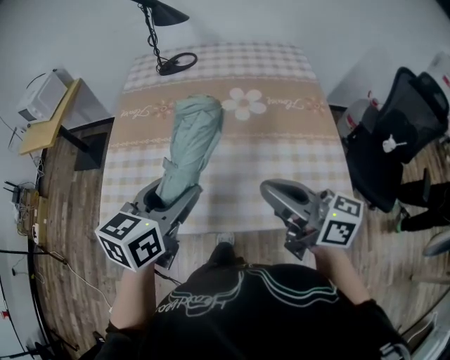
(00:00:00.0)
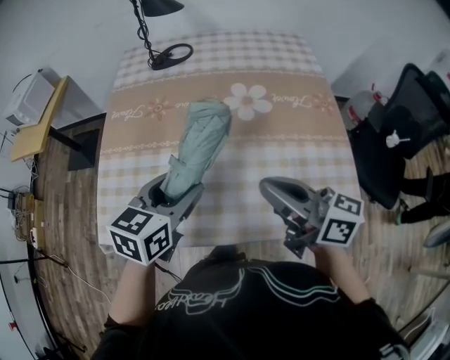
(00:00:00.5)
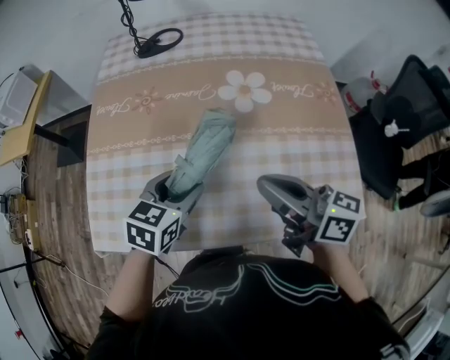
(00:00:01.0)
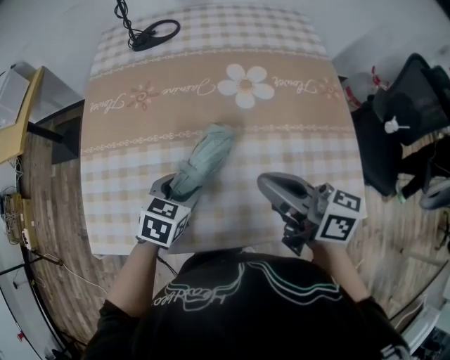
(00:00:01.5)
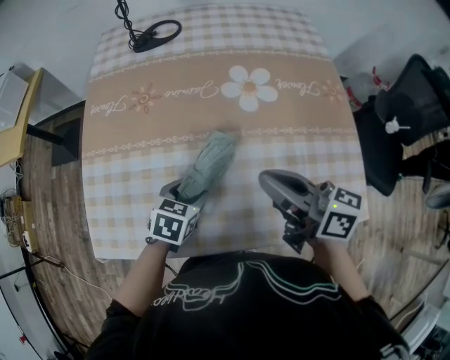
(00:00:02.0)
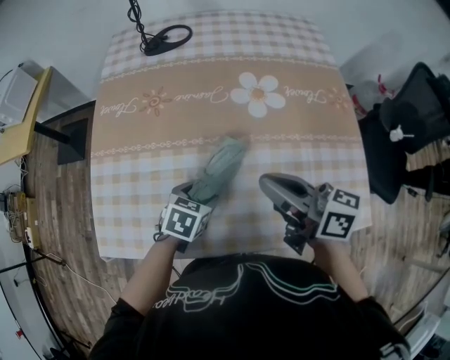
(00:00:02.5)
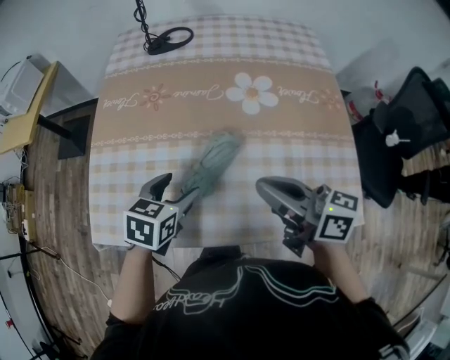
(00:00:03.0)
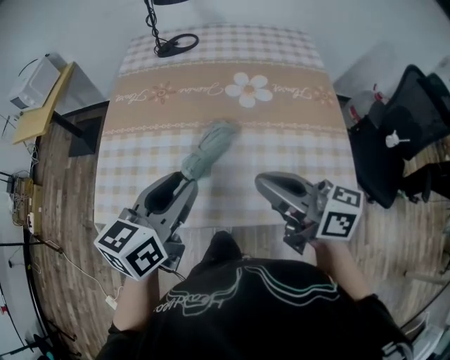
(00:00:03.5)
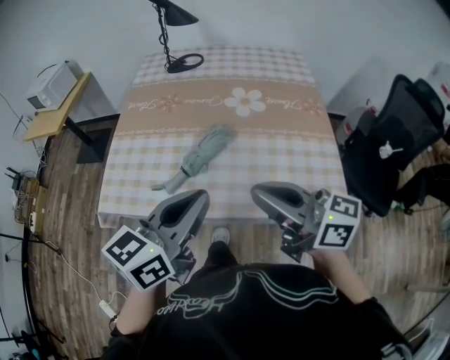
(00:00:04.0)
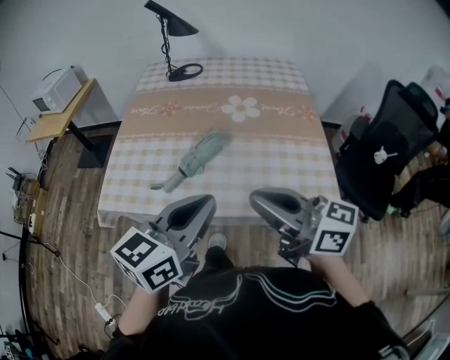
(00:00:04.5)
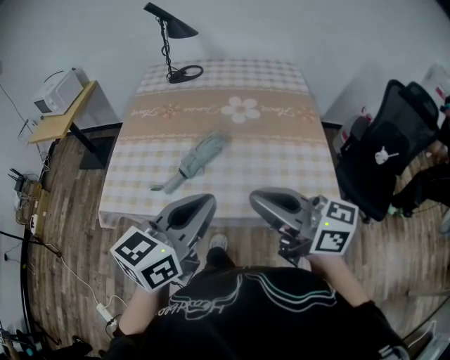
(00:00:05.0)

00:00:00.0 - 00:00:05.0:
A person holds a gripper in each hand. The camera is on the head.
00:00:00.0 - 00:00:02.5: The left gripper shifts roughly 25 cm downward, and tips its fingers downward by some 40 degrees. The right gripper heads forward and downward, covering about 15 cm.
00:00:02.5 - 00:00:05.0: The left gripper goes approximately 40 cm upward and backward, angles its fingers upward, by some 50 degrees, and closes up. Meanwhile the right gripper heads backward and upward, covering approximately 30 cm, and turns by about 20 degrees.

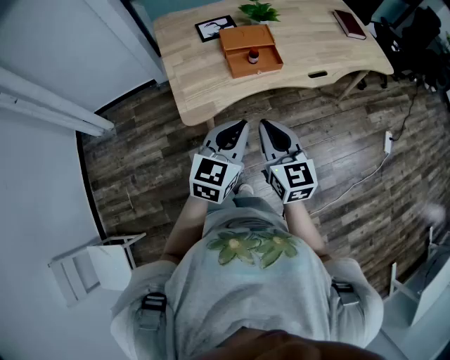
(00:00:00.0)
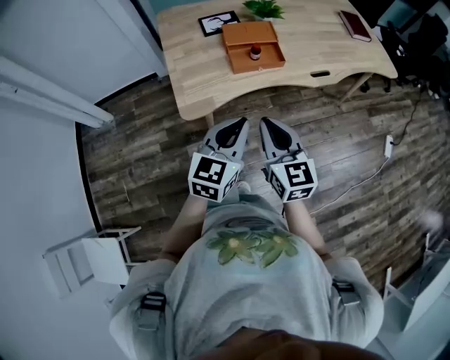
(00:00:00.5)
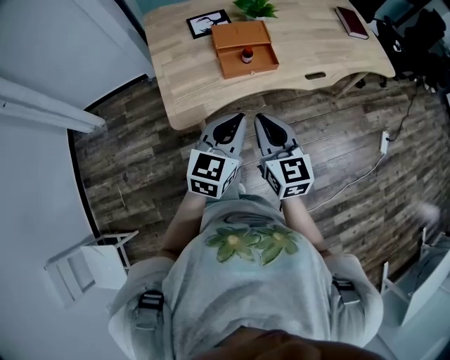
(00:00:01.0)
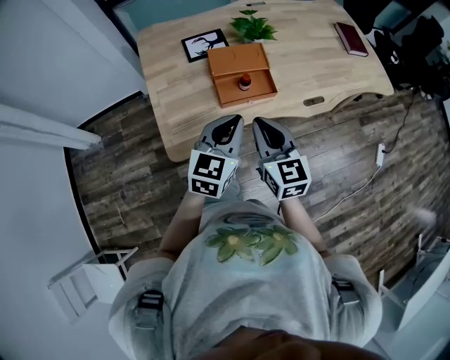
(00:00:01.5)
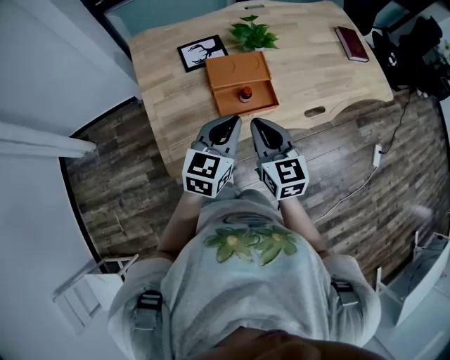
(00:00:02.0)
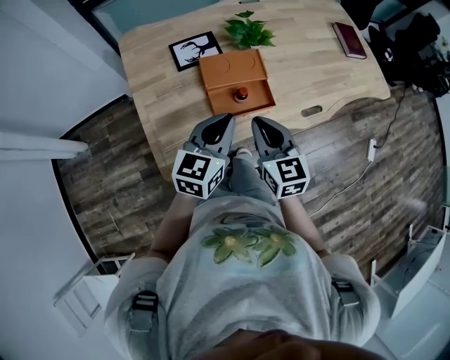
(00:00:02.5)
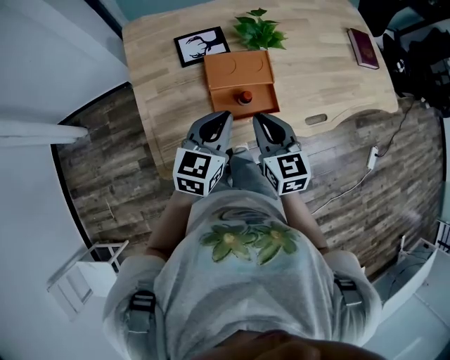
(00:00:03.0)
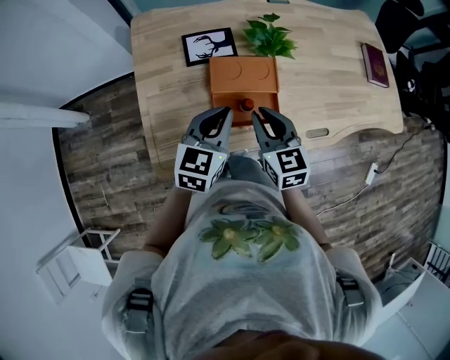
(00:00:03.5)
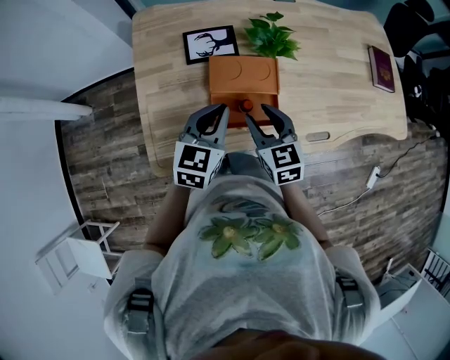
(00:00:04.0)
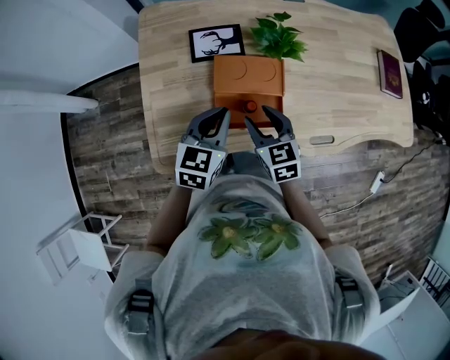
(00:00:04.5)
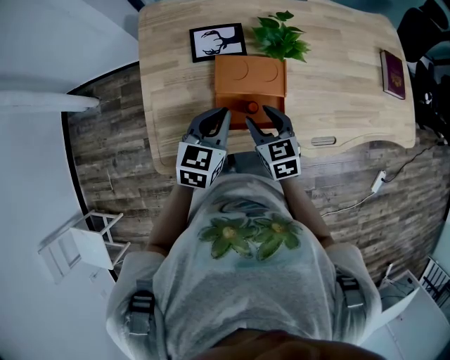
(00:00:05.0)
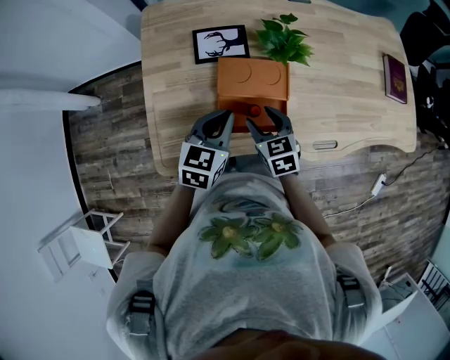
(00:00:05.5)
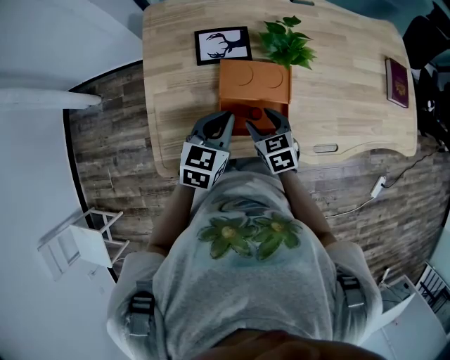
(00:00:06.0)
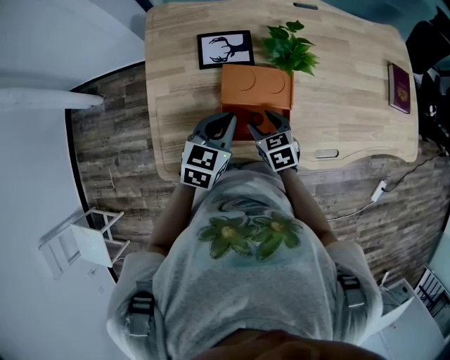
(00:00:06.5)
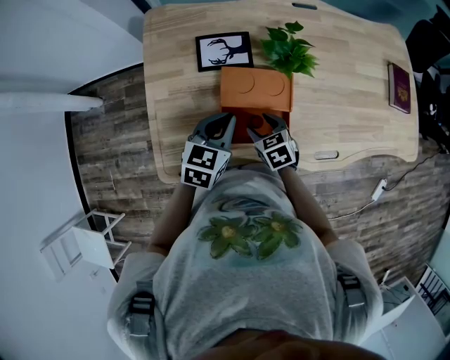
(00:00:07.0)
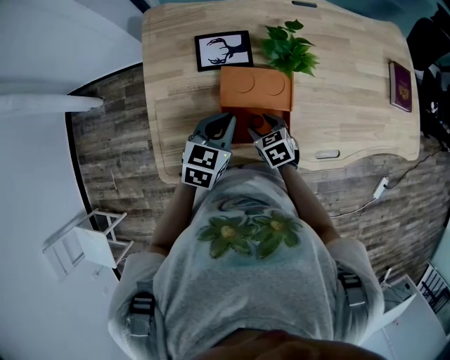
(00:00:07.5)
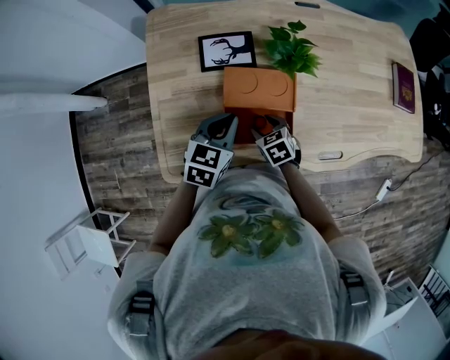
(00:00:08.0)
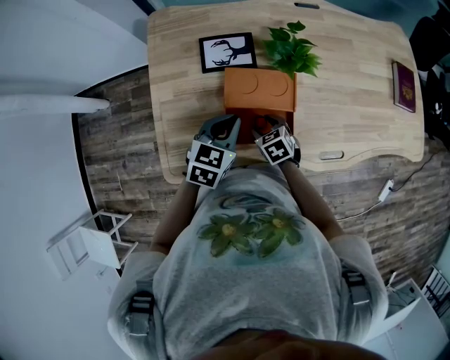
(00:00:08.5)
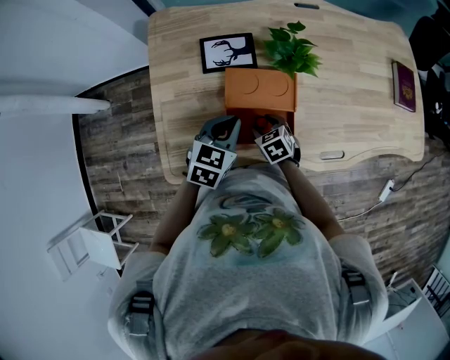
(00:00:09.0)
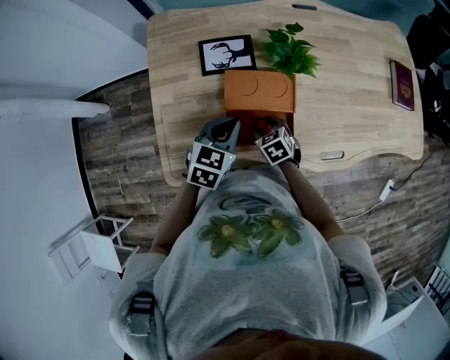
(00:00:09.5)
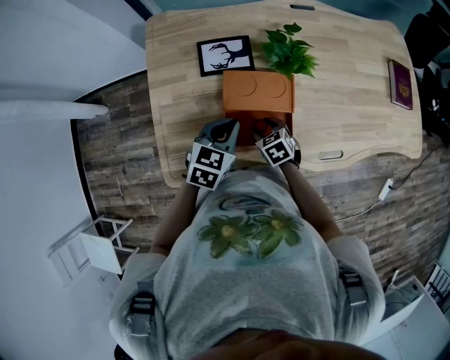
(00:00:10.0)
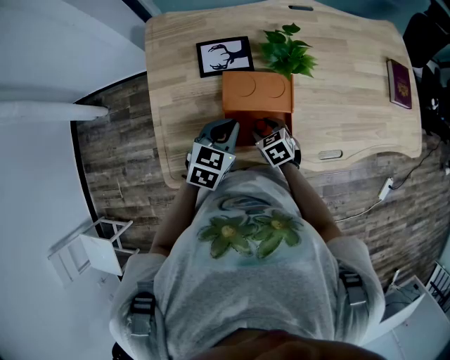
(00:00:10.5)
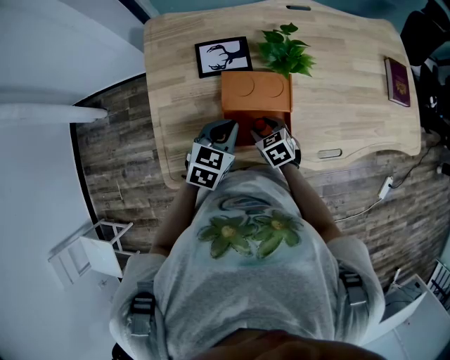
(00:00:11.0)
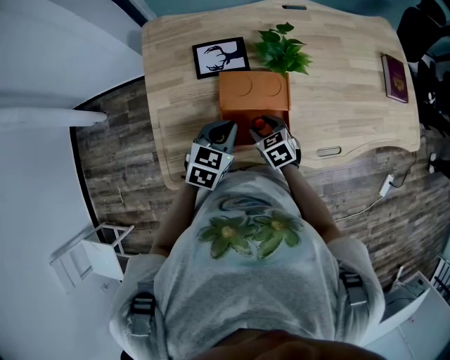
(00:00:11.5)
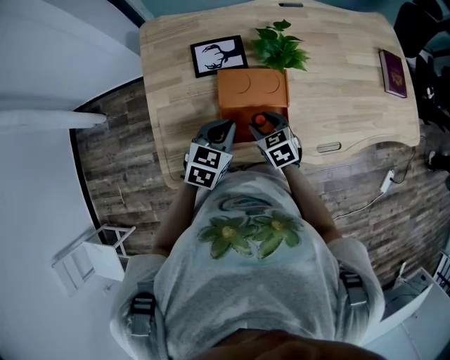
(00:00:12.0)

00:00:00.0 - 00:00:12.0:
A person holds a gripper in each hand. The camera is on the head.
00:00:00.0 - 00:00:02.0: The two grippers go roughly 25 cm forward.
00:00:02.0 - 00:00:04.0: The right gripper heads forward and downward, covering about 15 cm, and opens its fingers. Meanwhile the left gripper heads forward, covering some 10 cm.
00:00:04.0 - 00:00:06.0: The right gripper travels downward by roughly 10 cm.
00:00:06.0 - 00:00:08.0: The right gripper goes approximately 5 cm downward.
00:00:08.0 - 00:00:10.0: Both grippers stay about where they are.
00:00:10.0 - 00:00:12.0: The right gripper travels upward by roughly 5 cm.

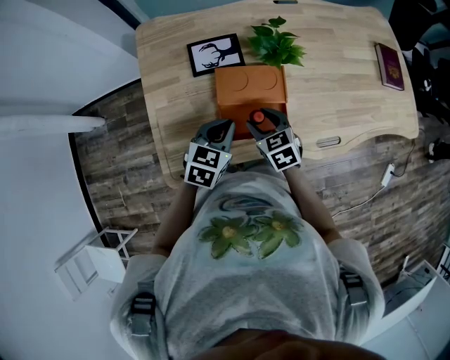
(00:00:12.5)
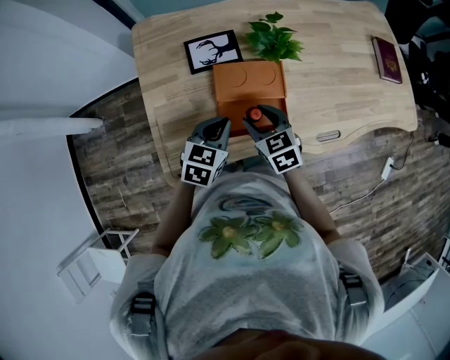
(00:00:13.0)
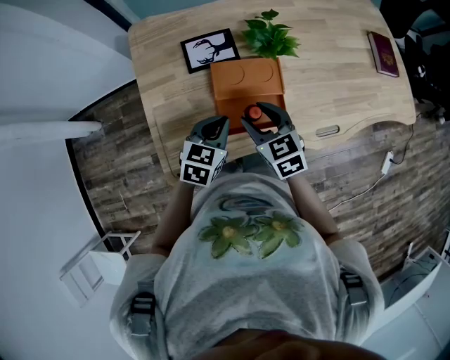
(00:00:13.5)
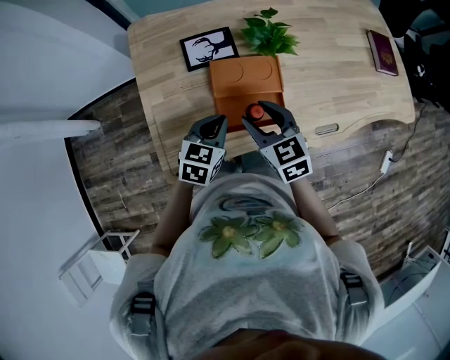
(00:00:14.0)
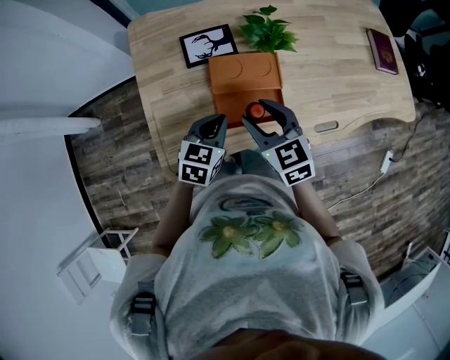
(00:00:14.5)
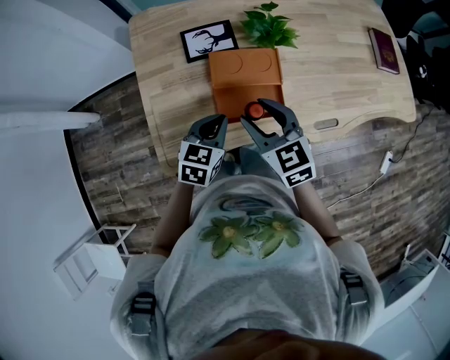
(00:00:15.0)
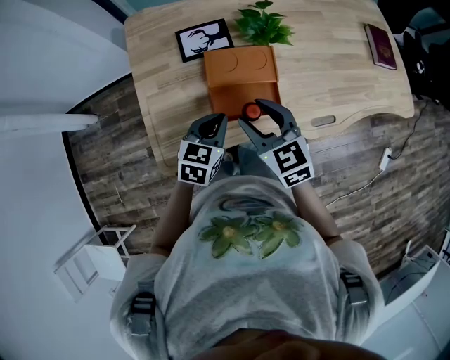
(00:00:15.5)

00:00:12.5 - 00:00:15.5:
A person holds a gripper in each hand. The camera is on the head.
00:00:12.5 - 00:00:14.0: The right gripper is displaced upward by roughly 10 cm.
00:00:14.0 - 00:00:15.5: The grippers move only a little.

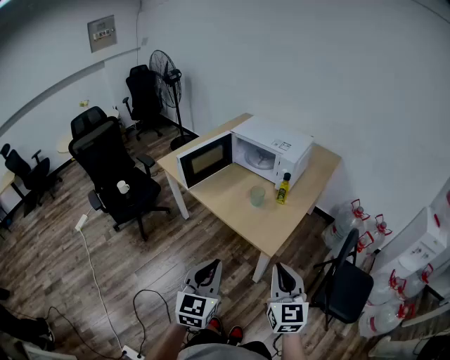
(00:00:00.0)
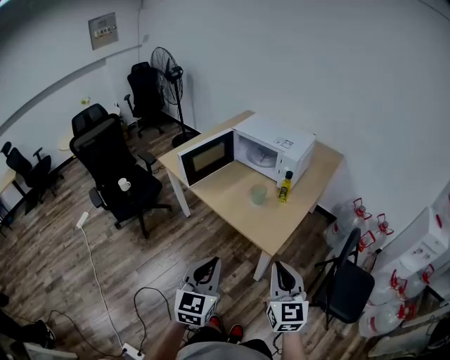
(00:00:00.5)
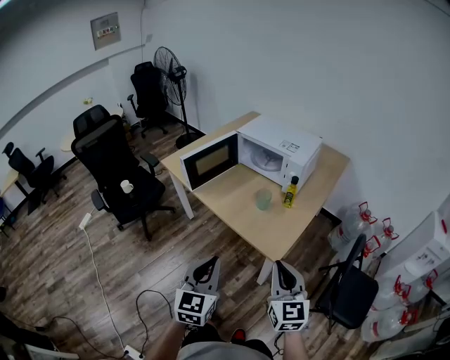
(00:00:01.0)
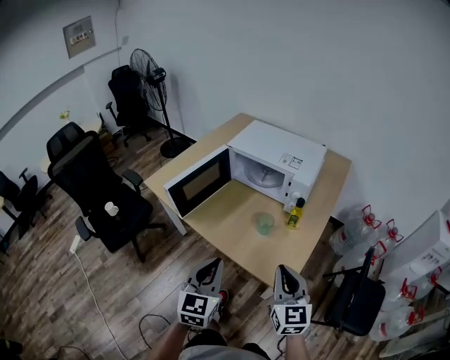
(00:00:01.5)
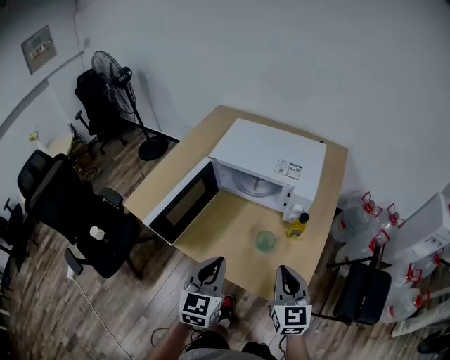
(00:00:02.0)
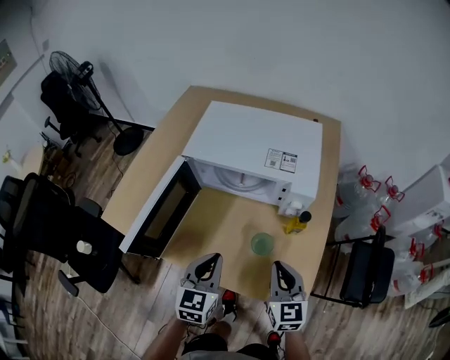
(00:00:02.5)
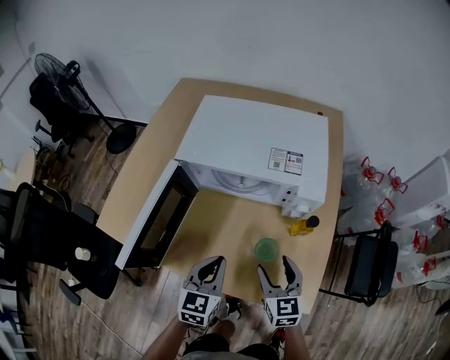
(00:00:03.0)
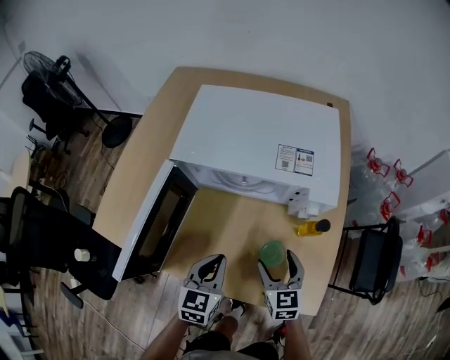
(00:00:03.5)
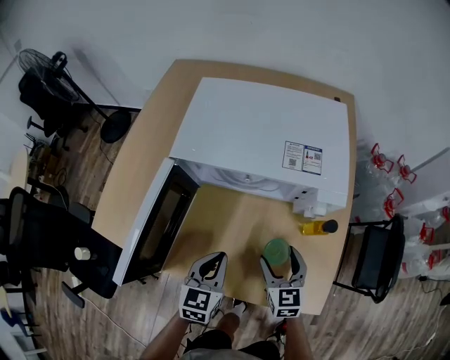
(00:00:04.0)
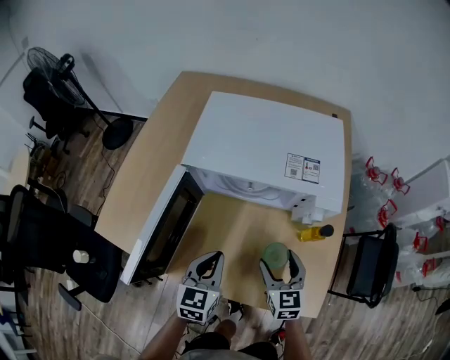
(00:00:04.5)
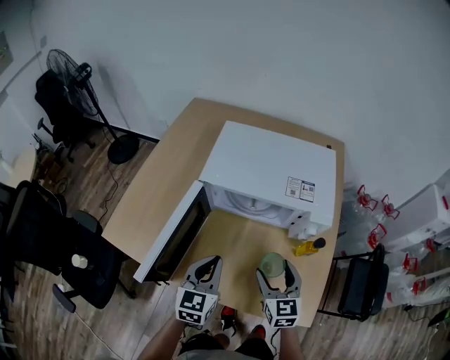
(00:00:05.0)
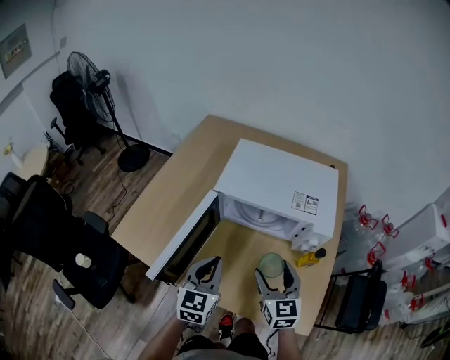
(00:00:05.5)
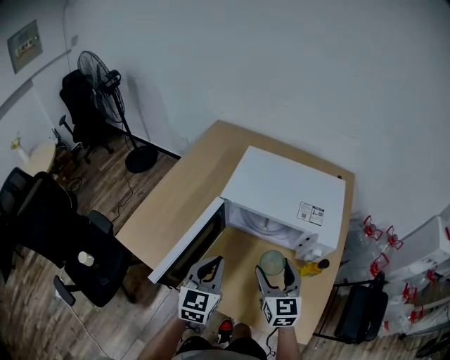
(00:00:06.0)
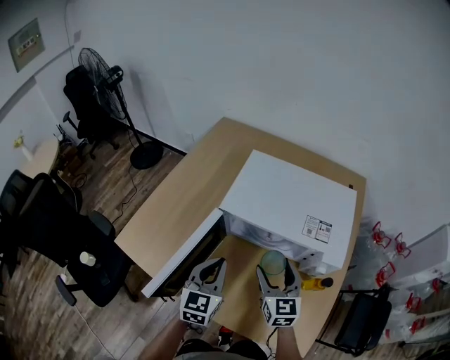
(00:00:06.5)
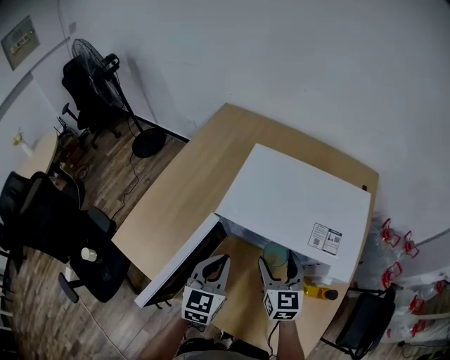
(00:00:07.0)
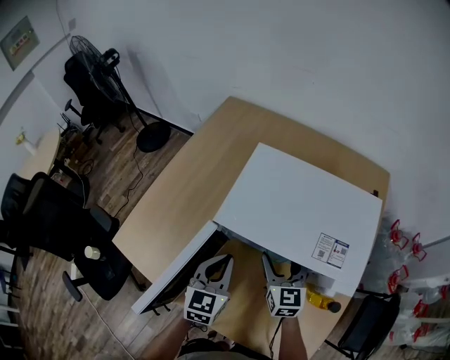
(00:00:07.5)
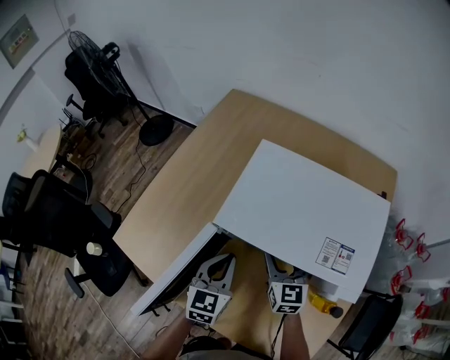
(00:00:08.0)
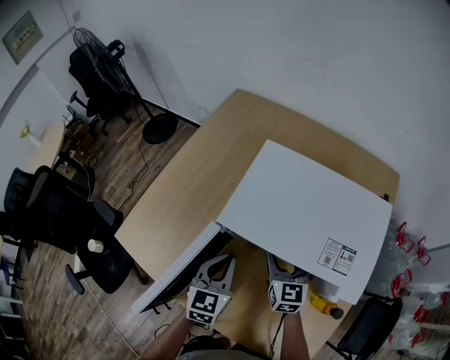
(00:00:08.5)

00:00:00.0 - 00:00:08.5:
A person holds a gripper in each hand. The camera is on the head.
00:00:00.0 - 00:00:02.0: The two grippers go approximately 35 cm forward.
00:00:02.0 - 00:00:04.0: Both grippers move downward and forward, some 20 cm. The left gripper turns by some 20 degrees. The right gripper opens.
00:00:04.0 - 00:00:06.5: Both grippers move upward, forward and to the left, about 15 cm.
00:00:06.5 - 00:00:08.5: Both grippers travel together forward and downward, approximately 10 cm.
